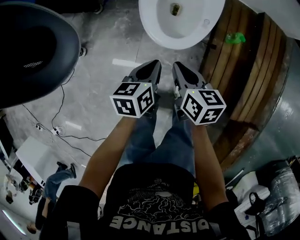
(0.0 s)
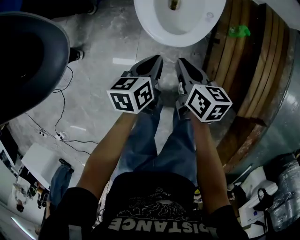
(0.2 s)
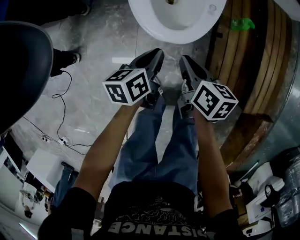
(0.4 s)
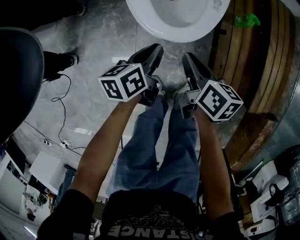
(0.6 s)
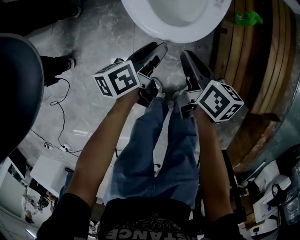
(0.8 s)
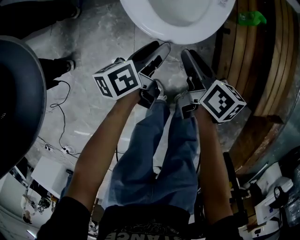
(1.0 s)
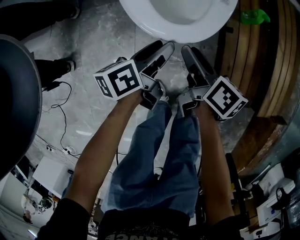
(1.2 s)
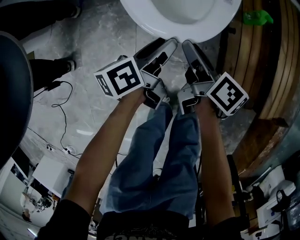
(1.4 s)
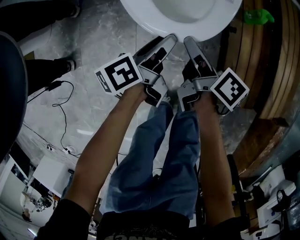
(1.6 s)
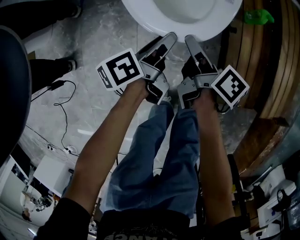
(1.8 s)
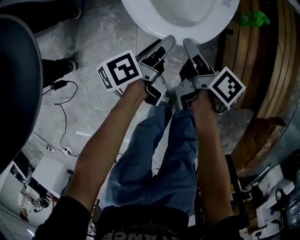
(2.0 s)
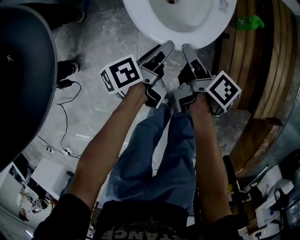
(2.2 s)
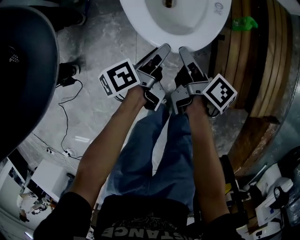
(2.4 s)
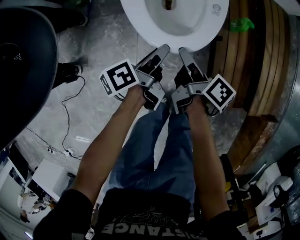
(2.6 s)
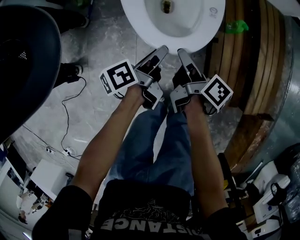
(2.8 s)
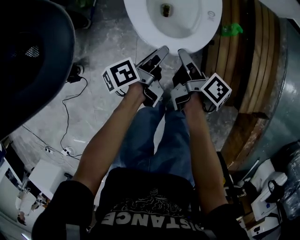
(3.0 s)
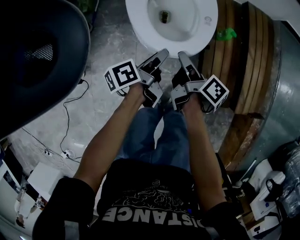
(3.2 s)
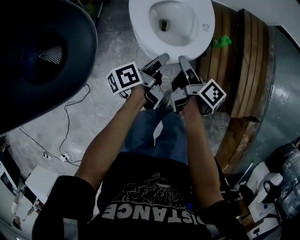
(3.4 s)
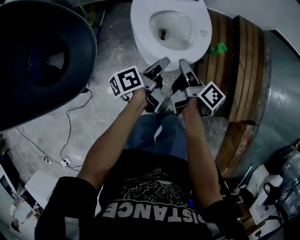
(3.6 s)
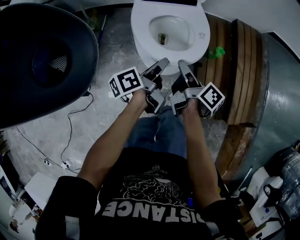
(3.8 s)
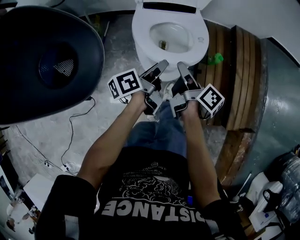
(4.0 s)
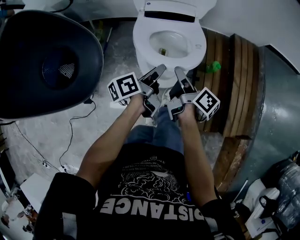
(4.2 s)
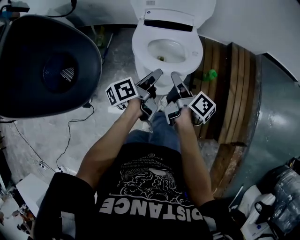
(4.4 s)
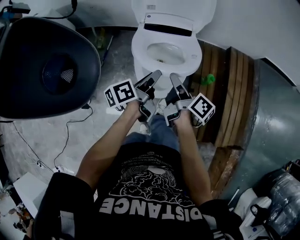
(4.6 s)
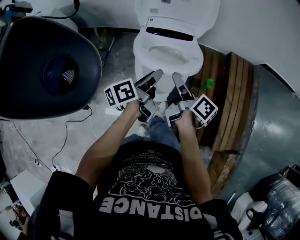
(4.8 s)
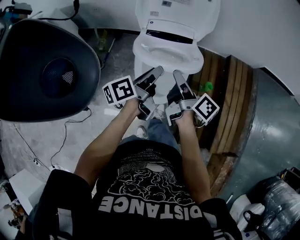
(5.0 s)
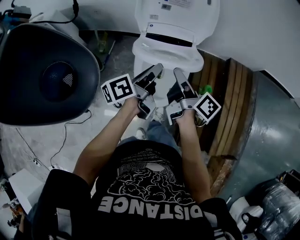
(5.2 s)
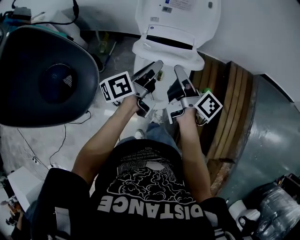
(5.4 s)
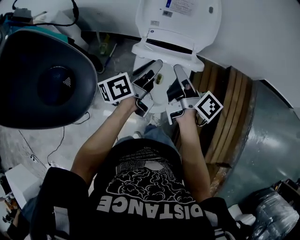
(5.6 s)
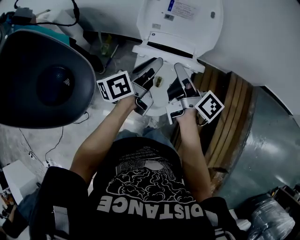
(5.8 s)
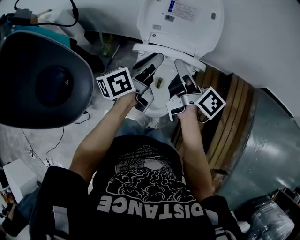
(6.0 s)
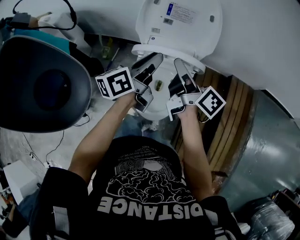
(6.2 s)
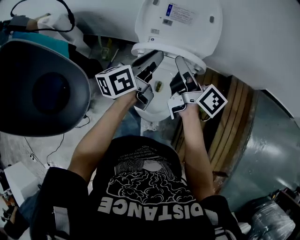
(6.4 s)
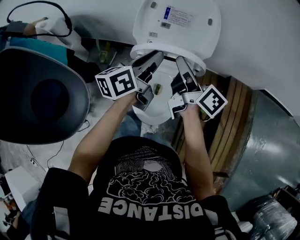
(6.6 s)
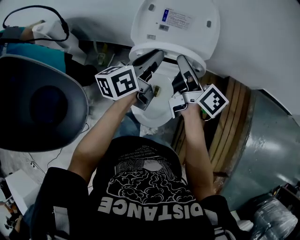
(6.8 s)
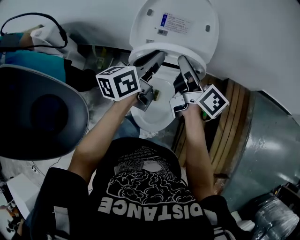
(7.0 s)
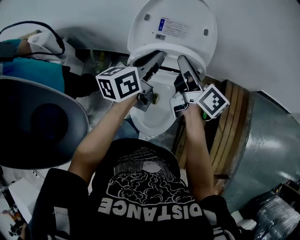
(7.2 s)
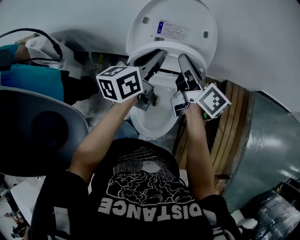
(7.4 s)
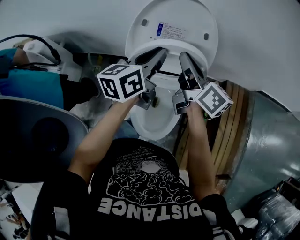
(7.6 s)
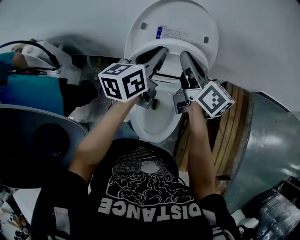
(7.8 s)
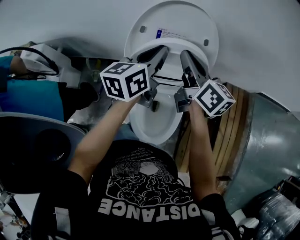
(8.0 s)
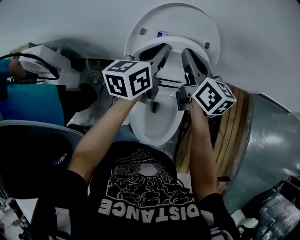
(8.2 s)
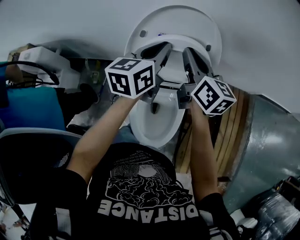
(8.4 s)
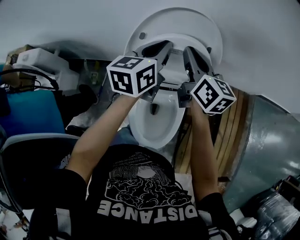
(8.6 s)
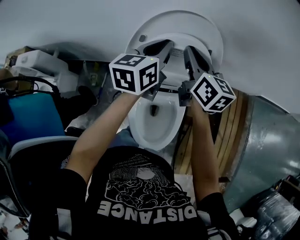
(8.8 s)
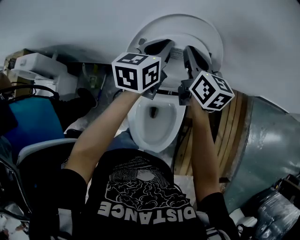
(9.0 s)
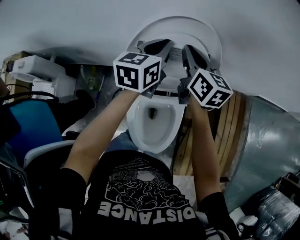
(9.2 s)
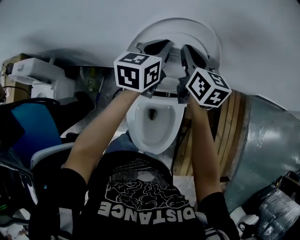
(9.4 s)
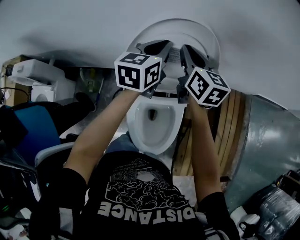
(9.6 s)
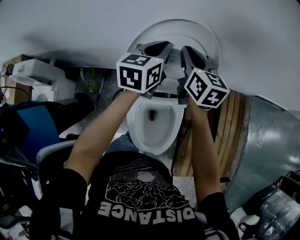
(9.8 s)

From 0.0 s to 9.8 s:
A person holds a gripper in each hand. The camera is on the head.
From 0.0 s to 1.4 s: Both grippers travel together downward, some 20 cm. The left gripper rotates about 30 degrees, and opens up. Meanwhile the right gripper rotates about 40 degrees, and opens its fingers.
From 1.4 s to 2.8 s: The grippers both shift upward by some 10 cm.
From 2.8 s to 4.2 s: The two grippers go approximately 25 cm upward.
From 4.2 s to 5.6 s: Both grippers travel together upward and forward, about 20 cm. The left gripper swivels about 20 degrees.
From 5.6 s to 7.0 s: The grippers both shift forward and upward by about 15 cm.
From 7.0 s to 8.4 s: Both grippers travel together forward, about 15 cm. The right gripper swivels approximately 30 degrees.
From 8.4 s to 9.8 s: The two grippers go approximately 5 cm forward.

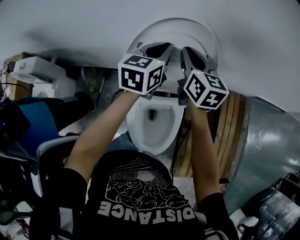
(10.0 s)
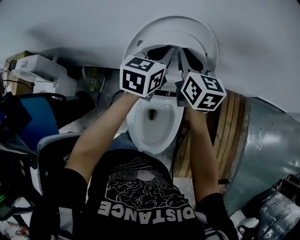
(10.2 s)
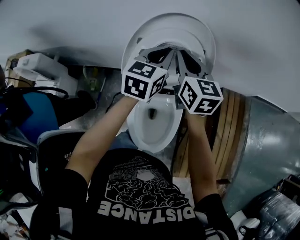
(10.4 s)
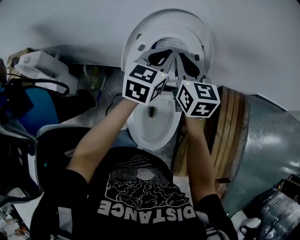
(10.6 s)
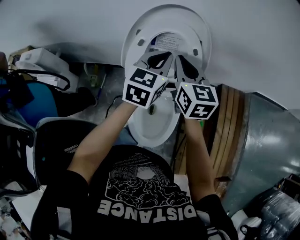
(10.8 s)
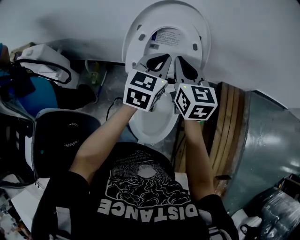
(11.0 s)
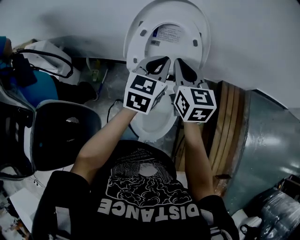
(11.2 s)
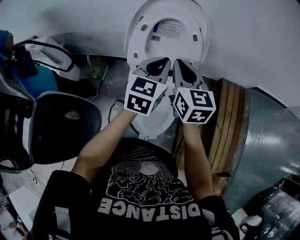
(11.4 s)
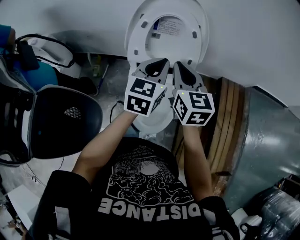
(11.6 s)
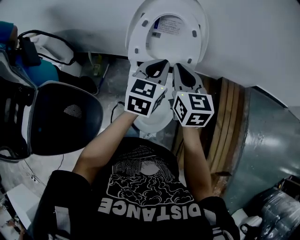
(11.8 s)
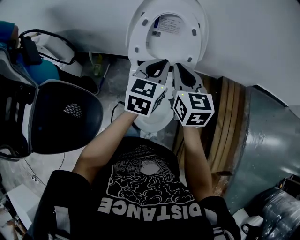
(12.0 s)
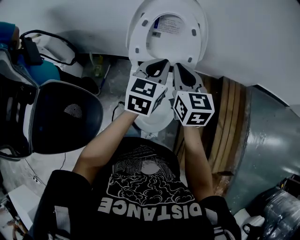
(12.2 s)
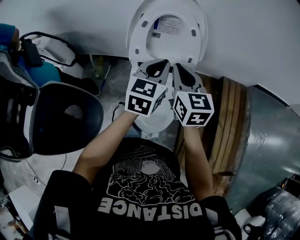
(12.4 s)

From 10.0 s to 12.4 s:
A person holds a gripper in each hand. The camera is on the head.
From 10.0 s to 11.2 s: Both grippers travel together backward, approximately 20 cm.
From 11.2 s to 12.4 s: Both grippers travel together backward, about 10 cm.

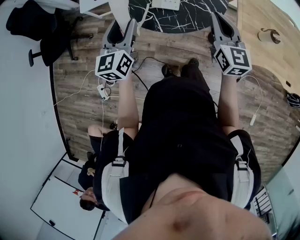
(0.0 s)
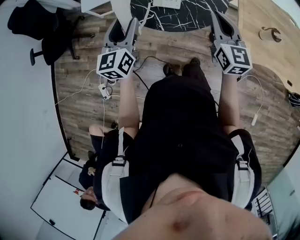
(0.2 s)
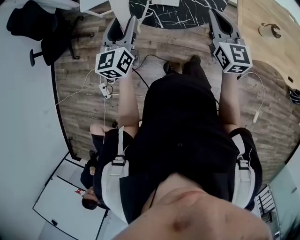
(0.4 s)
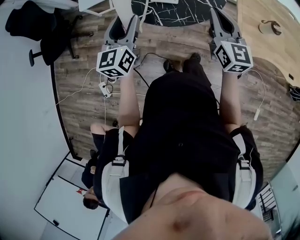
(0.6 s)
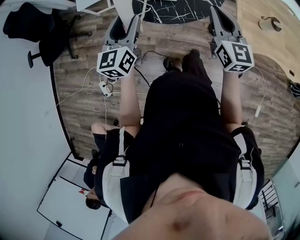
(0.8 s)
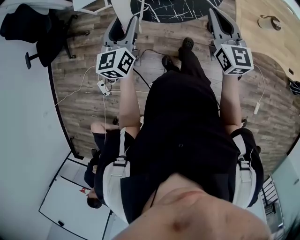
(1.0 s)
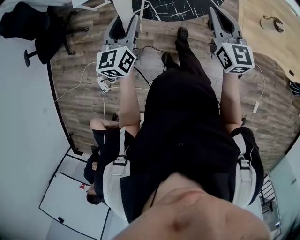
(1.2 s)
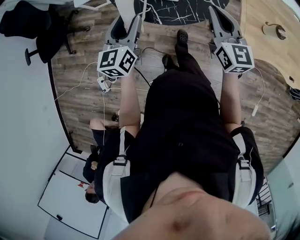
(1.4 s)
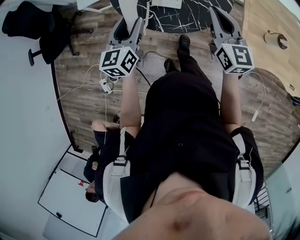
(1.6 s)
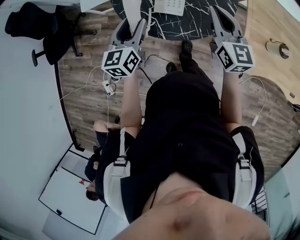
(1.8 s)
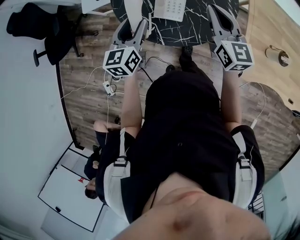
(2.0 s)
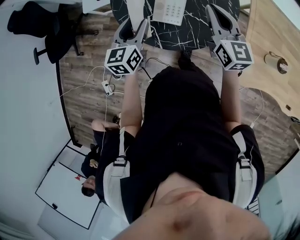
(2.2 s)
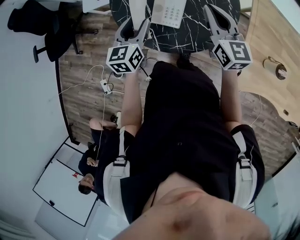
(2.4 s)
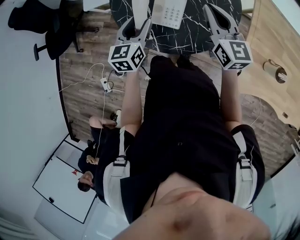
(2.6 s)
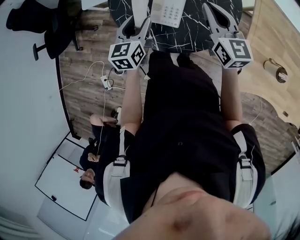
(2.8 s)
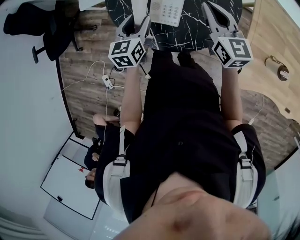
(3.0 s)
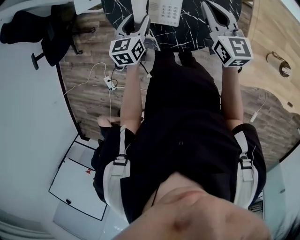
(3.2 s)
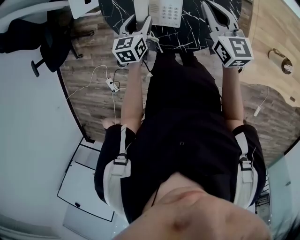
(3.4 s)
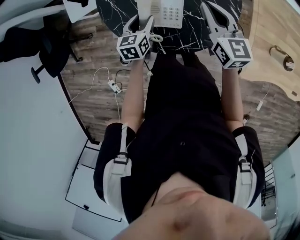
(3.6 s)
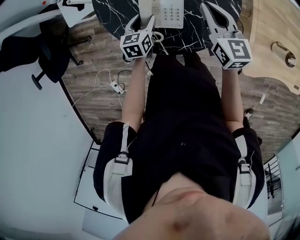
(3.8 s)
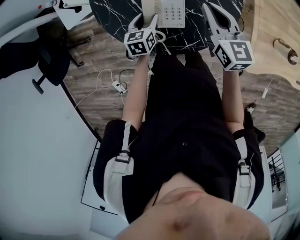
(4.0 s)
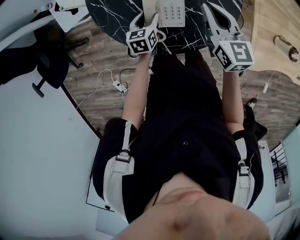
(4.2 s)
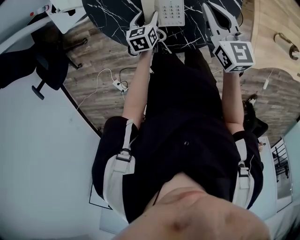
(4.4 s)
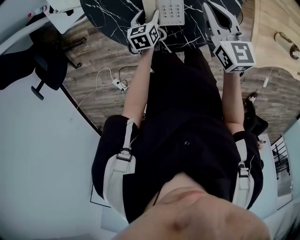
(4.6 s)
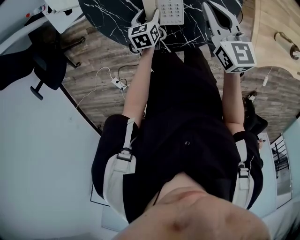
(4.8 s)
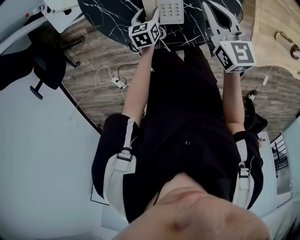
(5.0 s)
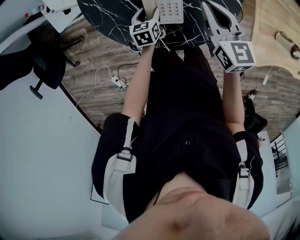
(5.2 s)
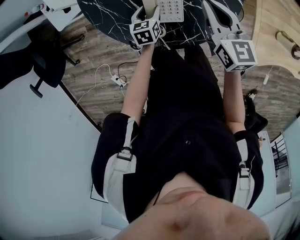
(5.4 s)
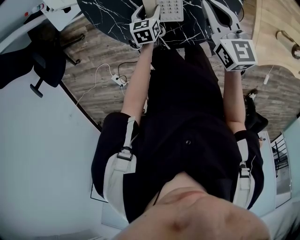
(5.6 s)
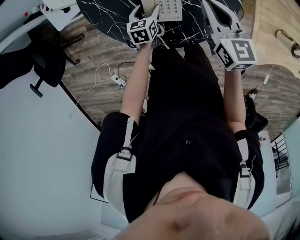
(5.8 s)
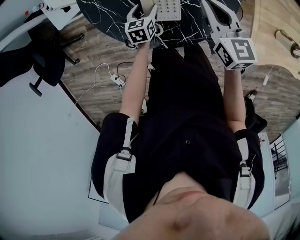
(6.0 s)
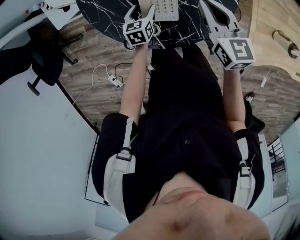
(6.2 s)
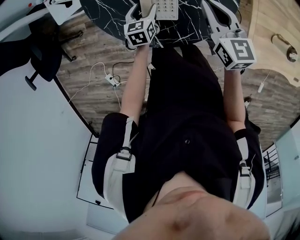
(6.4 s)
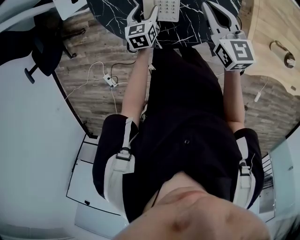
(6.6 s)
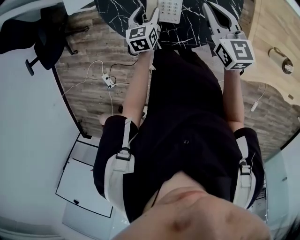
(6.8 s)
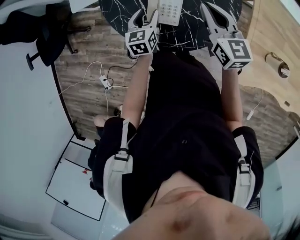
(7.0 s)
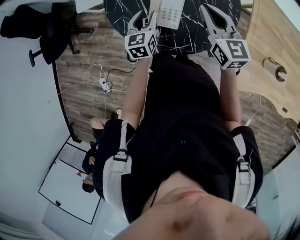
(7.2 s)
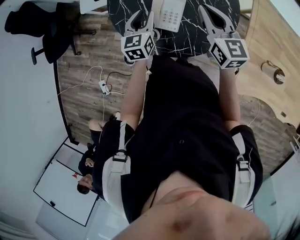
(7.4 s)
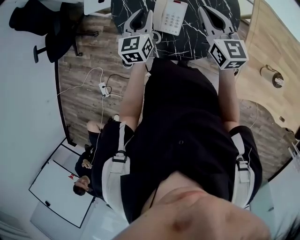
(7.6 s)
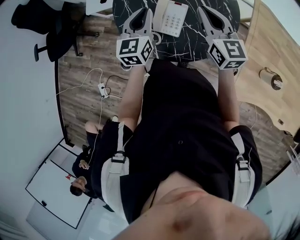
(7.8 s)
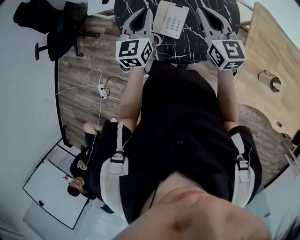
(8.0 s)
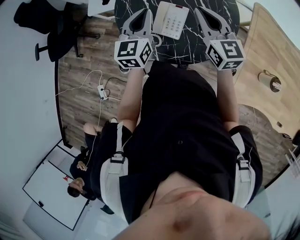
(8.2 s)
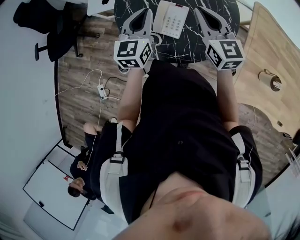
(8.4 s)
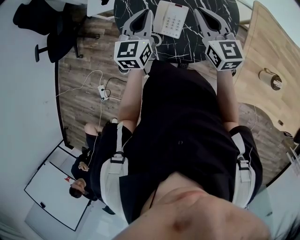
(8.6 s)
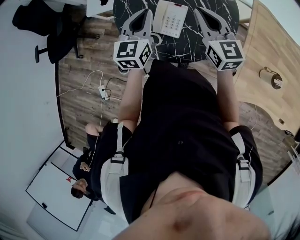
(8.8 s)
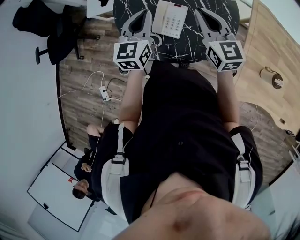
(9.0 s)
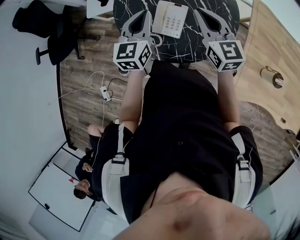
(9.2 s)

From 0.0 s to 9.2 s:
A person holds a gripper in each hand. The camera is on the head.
From 0.0 s to 1.6 s: The left gripper changes place by roughly 5 cm. The right gripper goes roughly 5 cm forward.
From 1.6 s to 3.0 s: The left gripper travels forward, downward and to the right by about 20 cm. The right gripper goes approximately 15 cm forward.
From 3.0 s to 4.6 s: The left gripper goes roughly 20 cm downward, and swivels approximately 20 degrees. Meanwhile the right gripper is displaced downward by roughly 5 cm, and changes its angle by about 20 degrees.
From 4.6 s to 6.2 s: The grippers move only a little.
From 6.2 s to 7.6 s: The left gripper travels upward by some 25 cm, changes its angle by some 30 degrees, and closes its fingers. Meanwhile the right gripper travels upward by some 10 cm, and swivels roughly 20 degrees.
From 7.6 s to 9.2 s: The left gripper is displaced upward by approximately 5 cm.

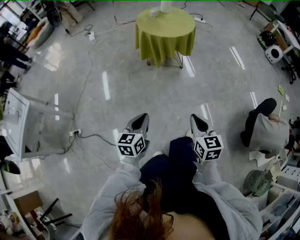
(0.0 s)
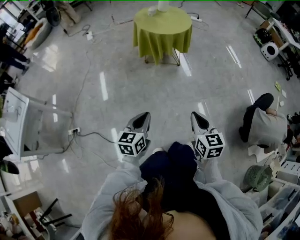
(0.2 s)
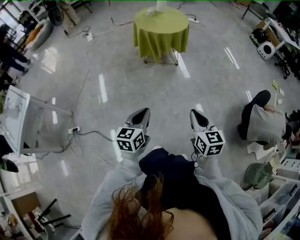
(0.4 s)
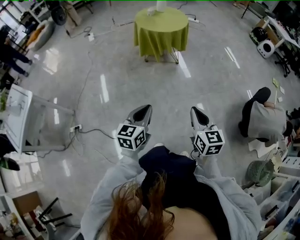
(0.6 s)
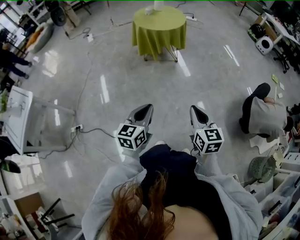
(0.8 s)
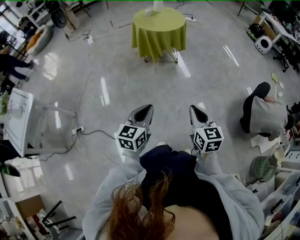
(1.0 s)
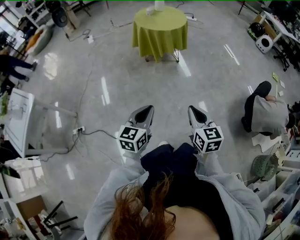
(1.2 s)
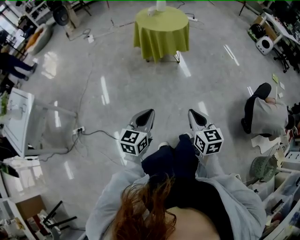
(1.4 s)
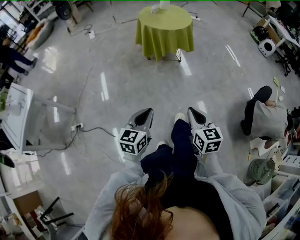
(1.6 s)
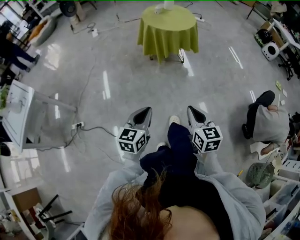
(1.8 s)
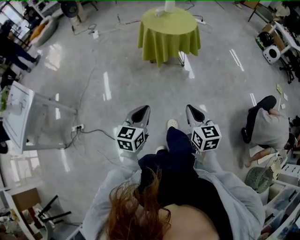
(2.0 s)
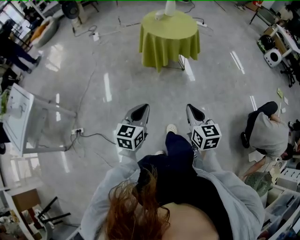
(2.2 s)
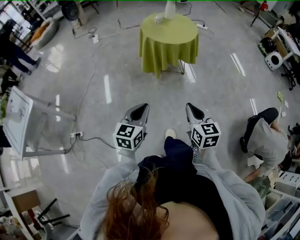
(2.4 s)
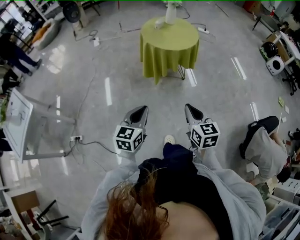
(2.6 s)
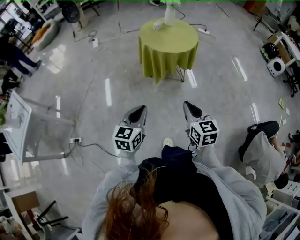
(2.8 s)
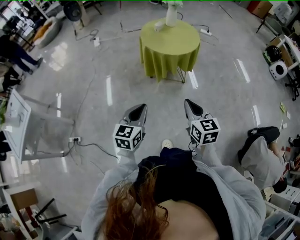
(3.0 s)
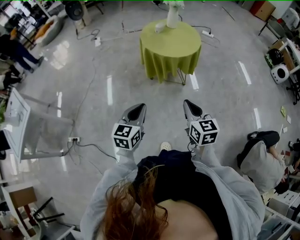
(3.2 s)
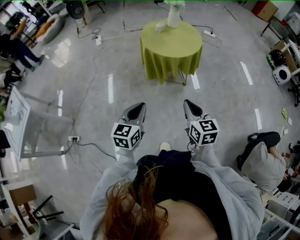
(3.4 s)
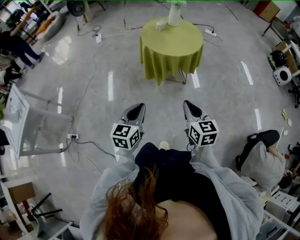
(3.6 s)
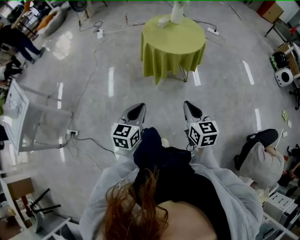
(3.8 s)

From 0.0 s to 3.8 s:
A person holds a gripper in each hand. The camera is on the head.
From 0.0 s to 1.2 s: The left gripper goes about 10 cm backward and upward, while the right gripper moves backward, approximately 10 cm.
From 1.2 s to 2.6 s: Both grippers travel together forward, approximately 20 cm.
From 2.6 s to 3.8 s: Both grippers move forward, roughly 10 cm.
